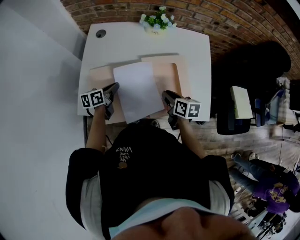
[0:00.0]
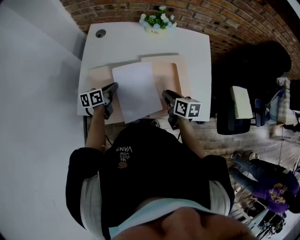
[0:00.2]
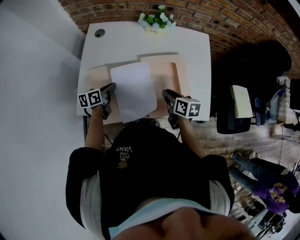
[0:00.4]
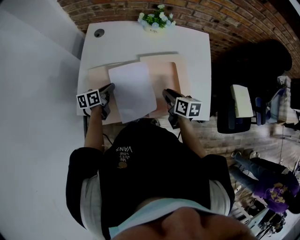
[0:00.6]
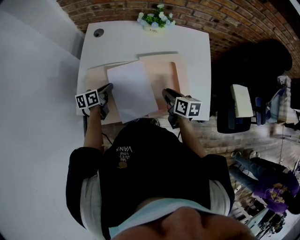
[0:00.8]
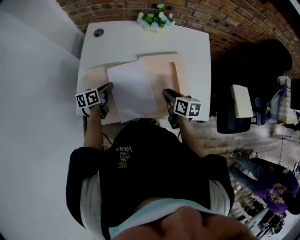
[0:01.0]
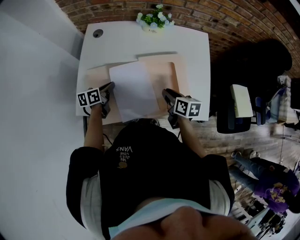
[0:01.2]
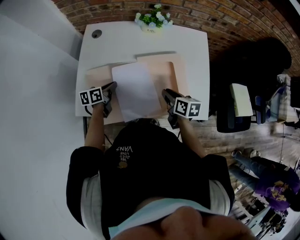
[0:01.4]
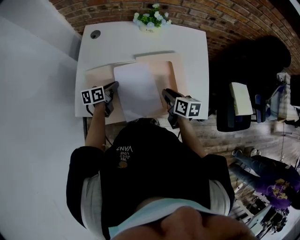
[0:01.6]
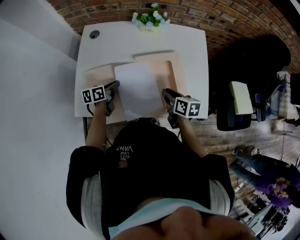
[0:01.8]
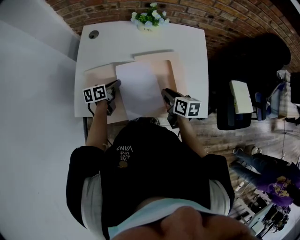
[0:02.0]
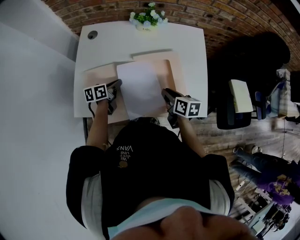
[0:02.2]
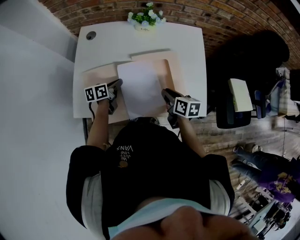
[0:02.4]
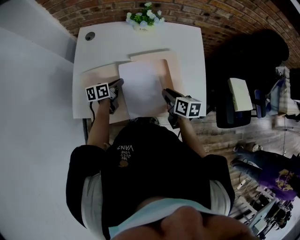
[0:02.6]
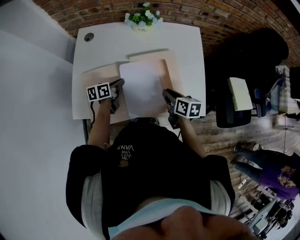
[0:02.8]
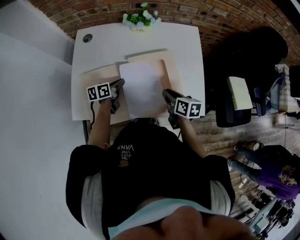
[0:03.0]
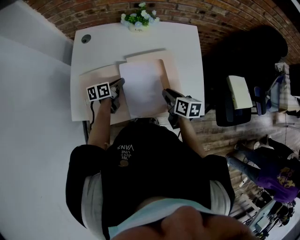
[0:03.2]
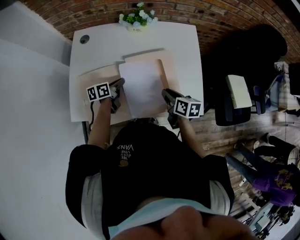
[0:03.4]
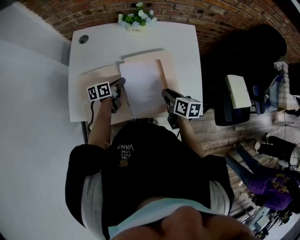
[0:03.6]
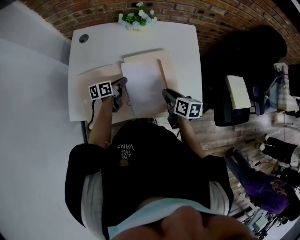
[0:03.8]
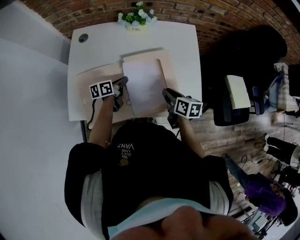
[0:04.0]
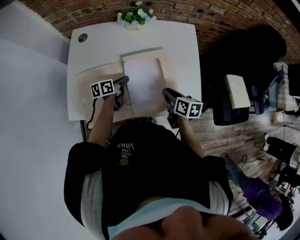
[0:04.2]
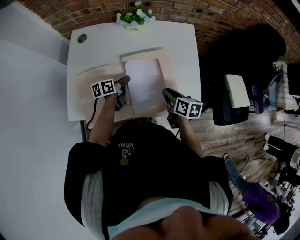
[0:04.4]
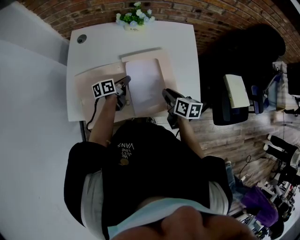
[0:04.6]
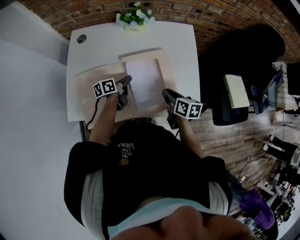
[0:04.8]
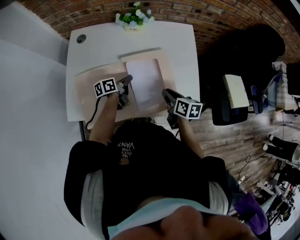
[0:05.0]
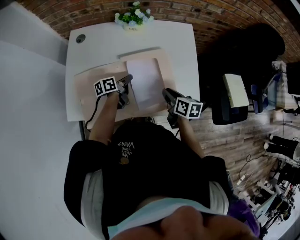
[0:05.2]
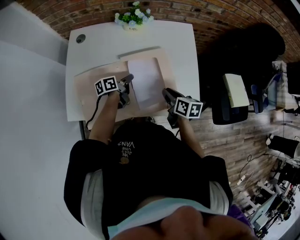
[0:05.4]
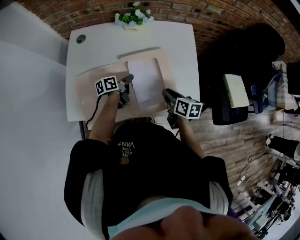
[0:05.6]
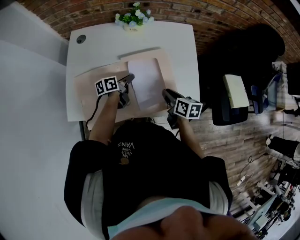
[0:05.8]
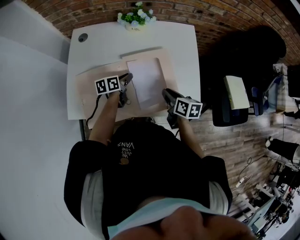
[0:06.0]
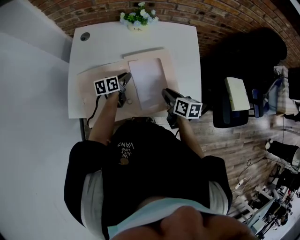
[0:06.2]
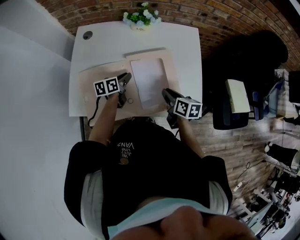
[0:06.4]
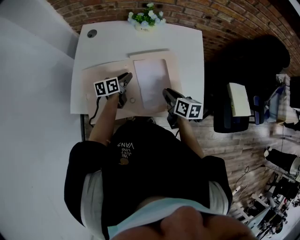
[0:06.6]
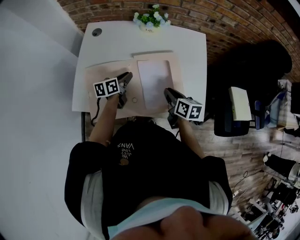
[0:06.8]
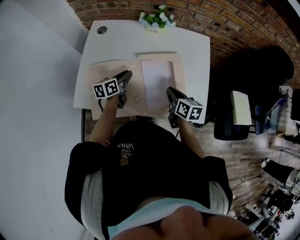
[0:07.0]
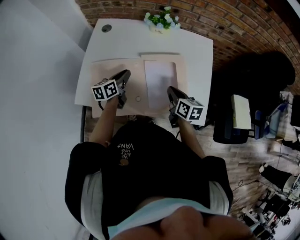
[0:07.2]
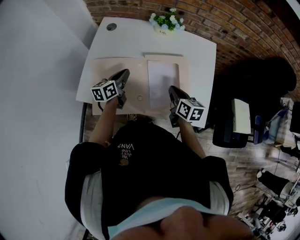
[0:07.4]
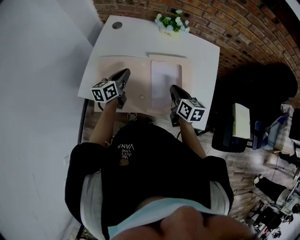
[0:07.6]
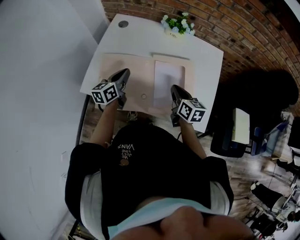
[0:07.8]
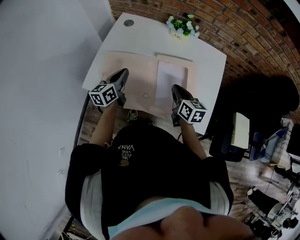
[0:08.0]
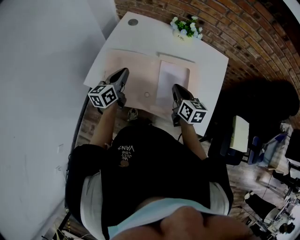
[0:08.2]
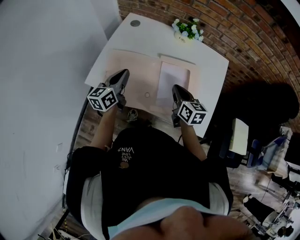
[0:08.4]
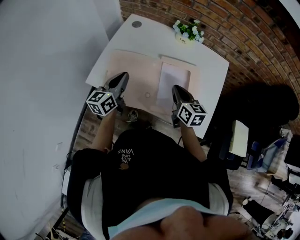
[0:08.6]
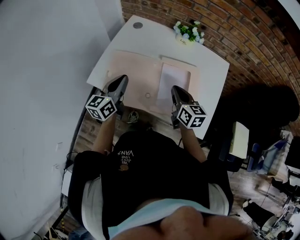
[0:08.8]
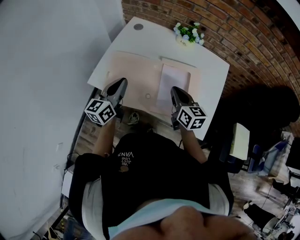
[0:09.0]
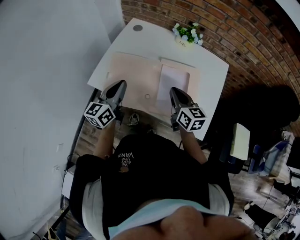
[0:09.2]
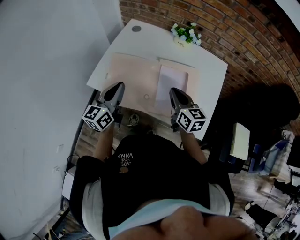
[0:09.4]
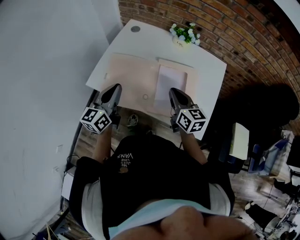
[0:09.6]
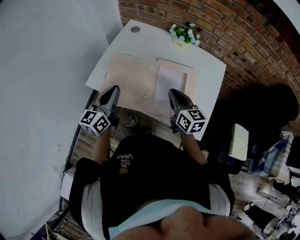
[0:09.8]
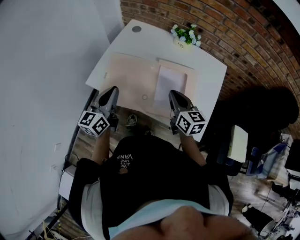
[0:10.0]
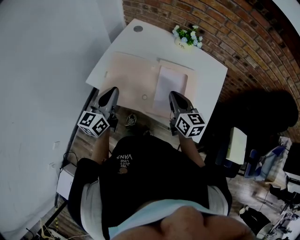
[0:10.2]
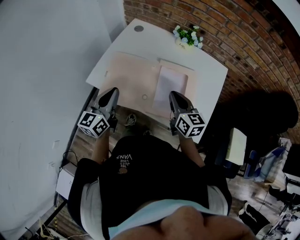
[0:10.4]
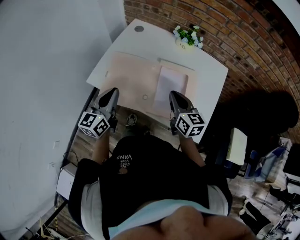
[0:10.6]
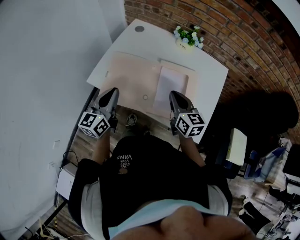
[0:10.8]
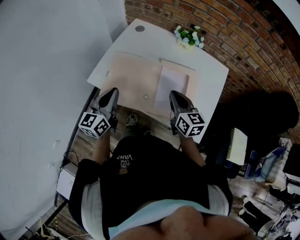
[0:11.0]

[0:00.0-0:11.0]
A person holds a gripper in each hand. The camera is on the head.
0:00.0 to 0:01.6: The grippers stay close to where they were, moving slightly.
0:01.6 to 0:03.2: The left gripper heads to the right, covering about 5 cm.
0:03.2 to 0:04.8: The left gripper goes some 5 cm to the right.
0:04.8 to 0:06.2: The left gripper opens.
0:06.2 to 0:07.8: The left gripper heads to the left, upward and backward, covering about 15 cm, swivels about 30 degrees, and closes up, while the right gripper travels to the left by about 5 cm.
0:07.8 to 0:09.4: The right gripper moves upward, some 5 cm. The left gripper shifts approximately 15 cm backward and upward, and turns by roughly 20 degrees.
0:09.4 to 0:11.0: There are only small adjustments of the grippers.

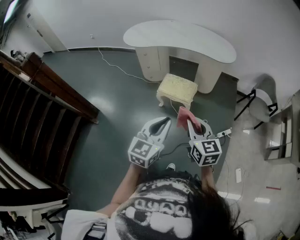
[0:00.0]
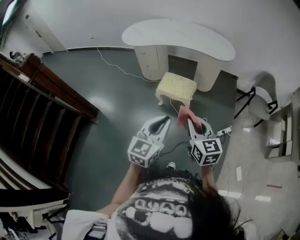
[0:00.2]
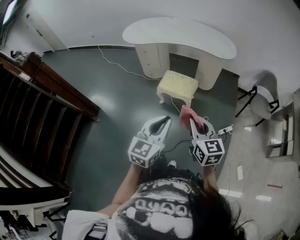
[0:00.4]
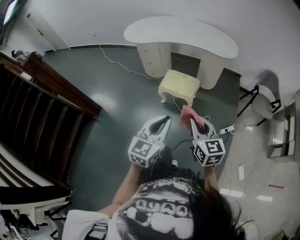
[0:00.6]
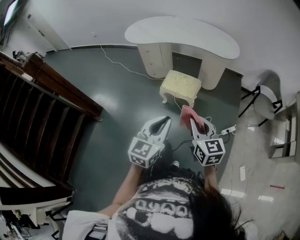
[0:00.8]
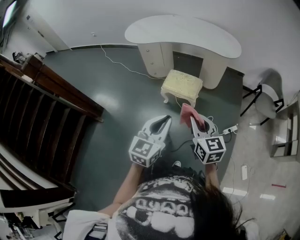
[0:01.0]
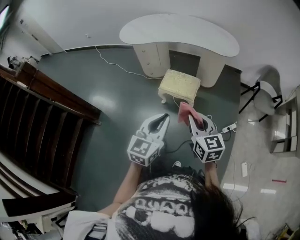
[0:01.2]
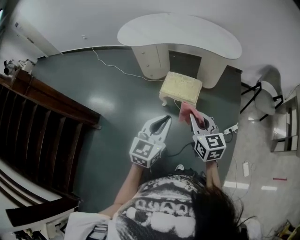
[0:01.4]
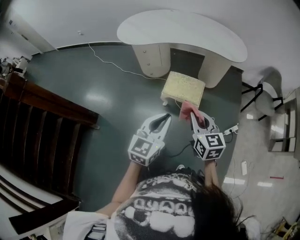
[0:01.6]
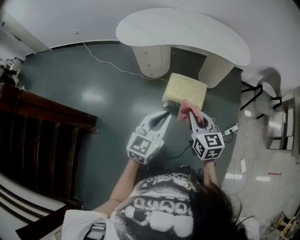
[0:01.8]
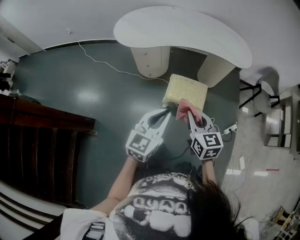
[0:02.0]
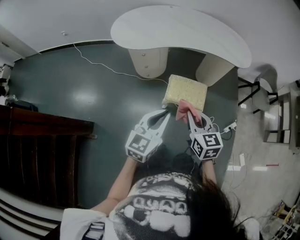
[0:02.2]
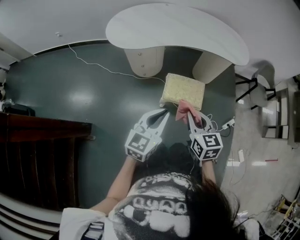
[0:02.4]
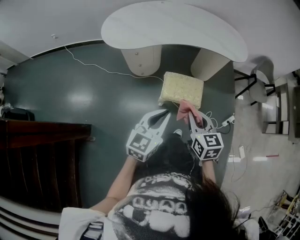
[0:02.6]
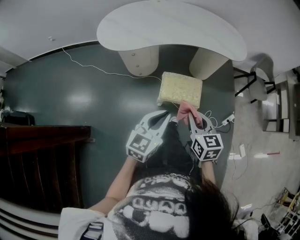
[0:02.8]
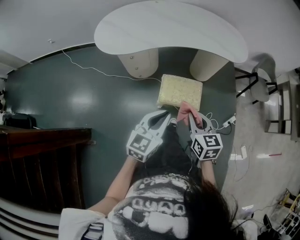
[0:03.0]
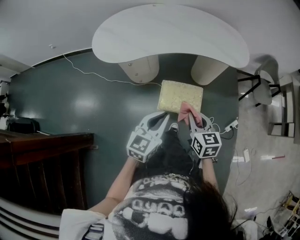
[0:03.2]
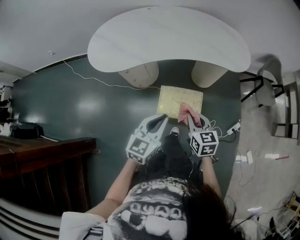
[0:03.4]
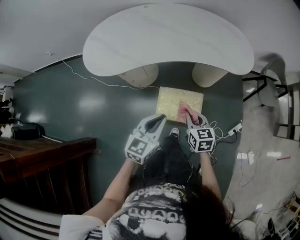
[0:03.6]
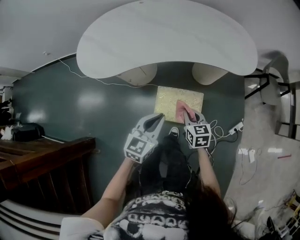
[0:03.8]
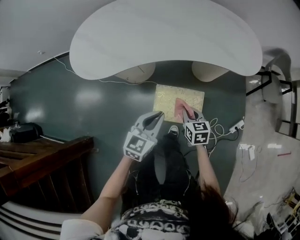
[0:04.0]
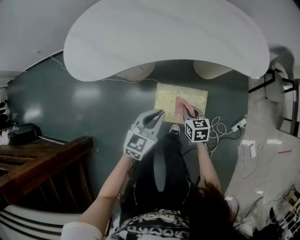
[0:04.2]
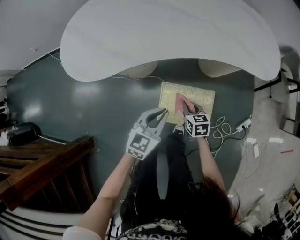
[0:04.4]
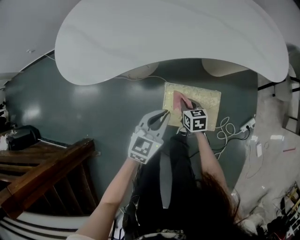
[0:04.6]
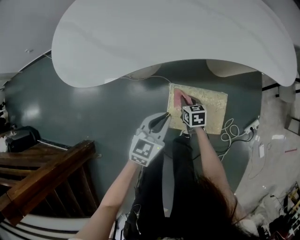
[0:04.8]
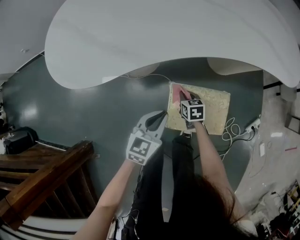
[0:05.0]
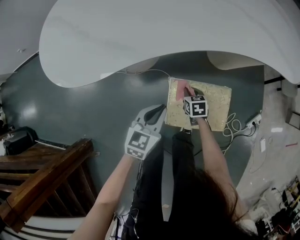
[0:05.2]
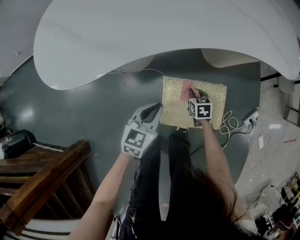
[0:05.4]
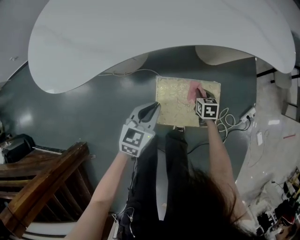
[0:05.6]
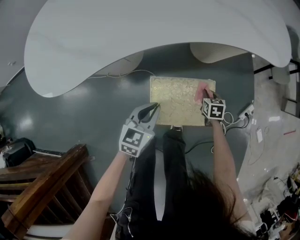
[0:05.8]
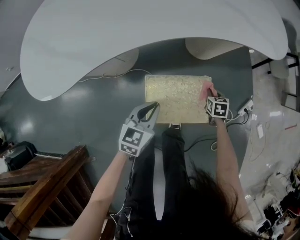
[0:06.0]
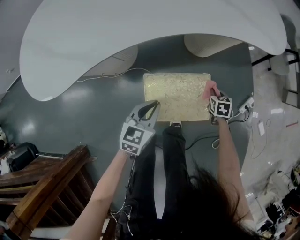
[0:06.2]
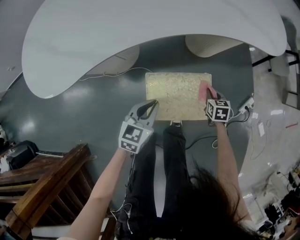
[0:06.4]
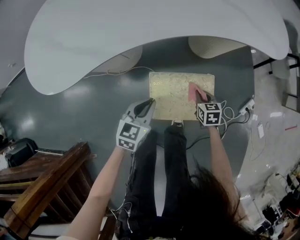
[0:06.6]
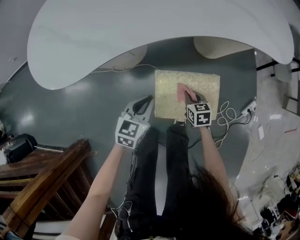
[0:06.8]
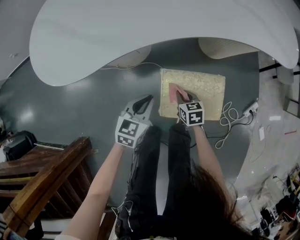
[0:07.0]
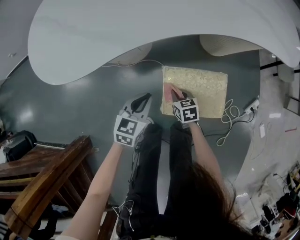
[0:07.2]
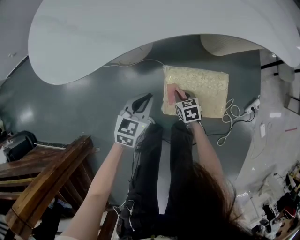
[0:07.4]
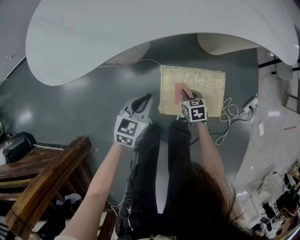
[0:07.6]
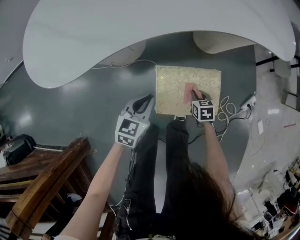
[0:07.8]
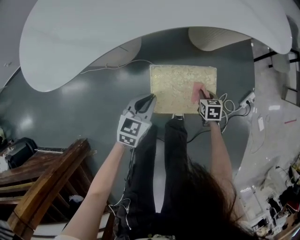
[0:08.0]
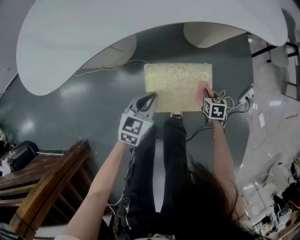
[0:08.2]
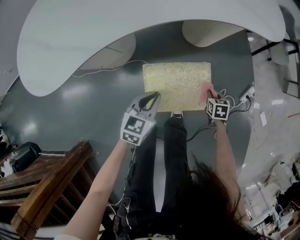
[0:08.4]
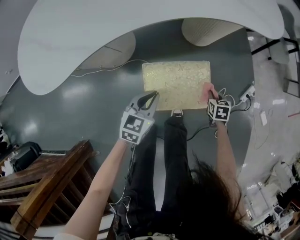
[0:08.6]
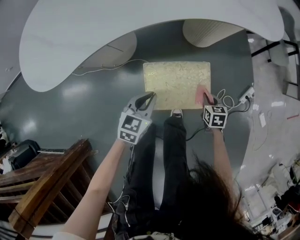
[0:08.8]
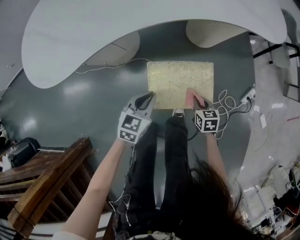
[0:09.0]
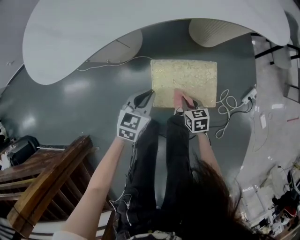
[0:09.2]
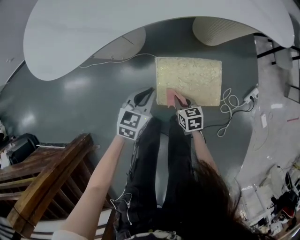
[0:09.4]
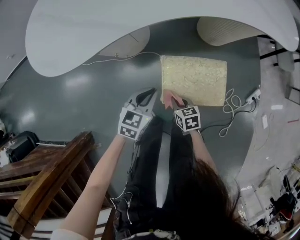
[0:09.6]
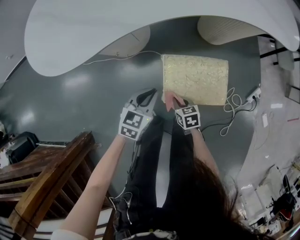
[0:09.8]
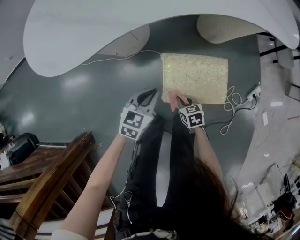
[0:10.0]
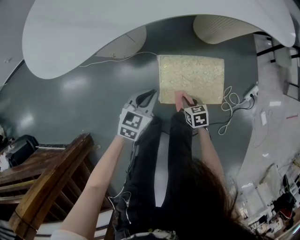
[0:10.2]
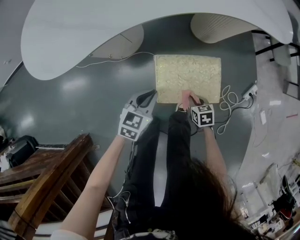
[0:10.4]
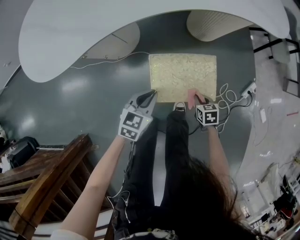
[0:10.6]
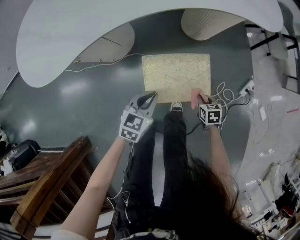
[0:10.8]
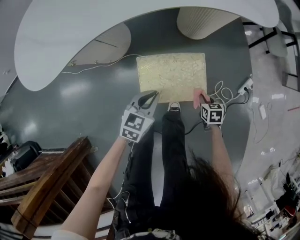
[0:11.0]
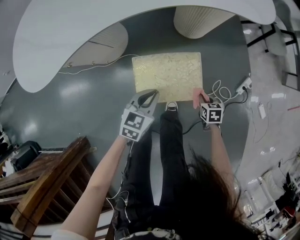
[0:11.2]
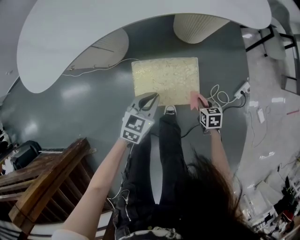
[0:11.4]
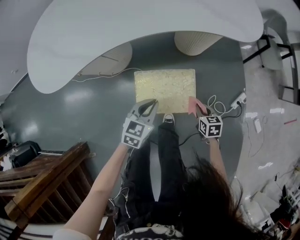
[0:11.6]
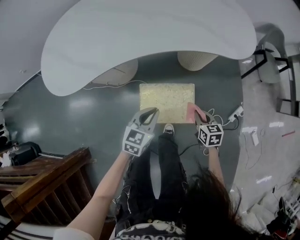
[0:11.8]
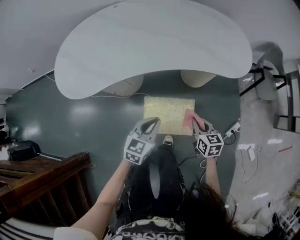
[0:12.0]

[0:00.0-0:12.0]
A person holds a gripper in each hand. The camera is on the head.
0:00.0 to 0:01.6: Both grippers travel together forward and to the left, some 20 cm.
0:01.6 to 0:03.0: The grippers both shift forward and to the left by approximately 20 cm.
0:03.0 to 0:04.4: The right gripper shifts some 40 cm downward and forward, and turns by roughly 20 degrees. Meanwhile the left gripper moves forward and downward, approximately 35 cm.
0:04.4 to 0:06.0: The right gripper heads to the right and downward, covering some 30 cm, and rotates roughly 30 degrees, while the left gripper moves downward, roughly 15 cm.
0:06.0 to 0:07.6: The right gripper moves to the left, some 20 cm. Meanwhile the left gripper moves to the left, about 10 cm.
0:07.6 to 0:09.0: The left gripper is displaced to the right by about 10 cm. Meanwhile the right gripper moves to the right, roughly 15 cm.
0:09.0 to 0:10.4: The right gripper reaches roughly 20 cm to the left, then returns.
0:10.4 to 0:12.0: The two grippers go approximately 25 cm upward and to the right. The right gripper swivels approximately 30 degrees.

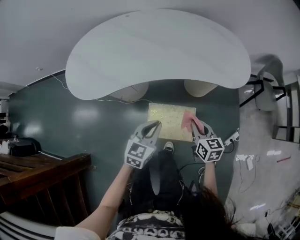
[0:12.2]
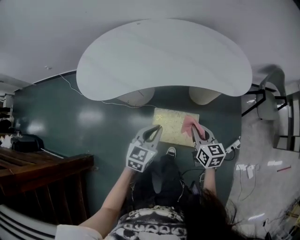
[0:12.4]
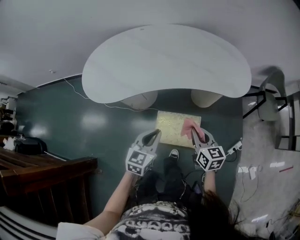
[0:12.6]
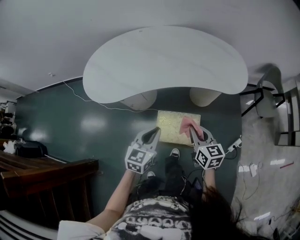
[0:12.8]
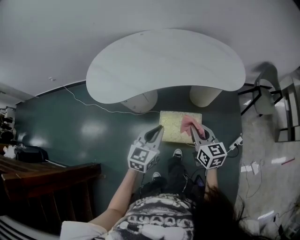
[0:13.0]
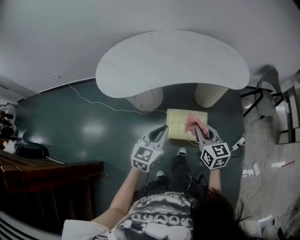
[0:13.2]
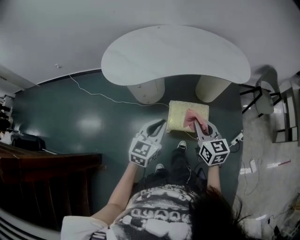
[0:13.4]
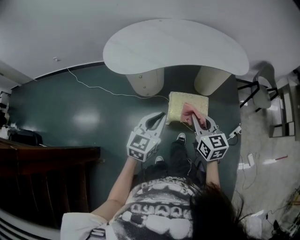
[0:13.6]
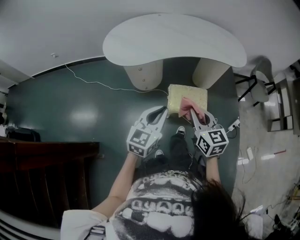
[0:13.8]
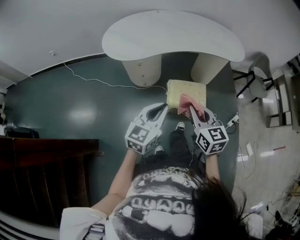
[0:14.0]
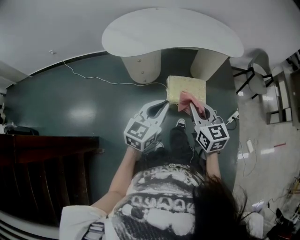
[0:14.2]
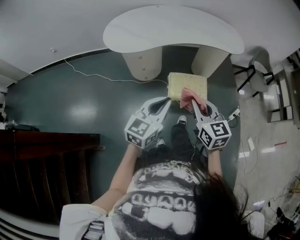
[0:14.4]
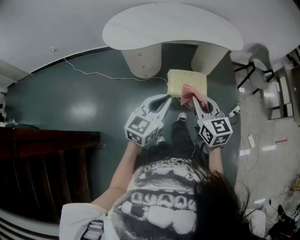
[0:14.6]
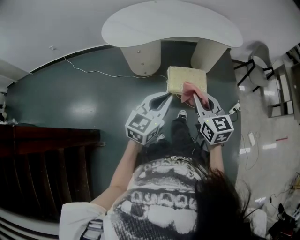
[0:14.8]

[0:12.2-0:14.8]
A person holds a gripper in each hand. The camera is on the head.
0:12.2 to 0:13.4: The right gripper shifts approximately 30 cm upward, to the left and backward, while the left gripper moves backward, to the left and upward, some 25 cm.
0:13.4 to 0:14.8: Both grippers travel together backward, about 15 cm.
